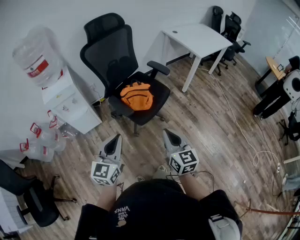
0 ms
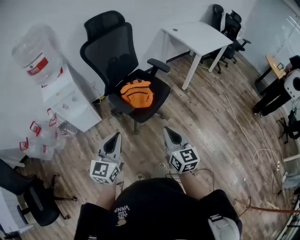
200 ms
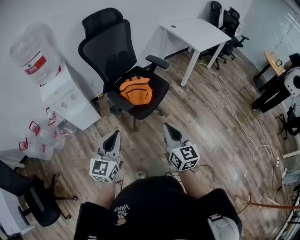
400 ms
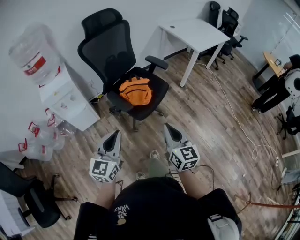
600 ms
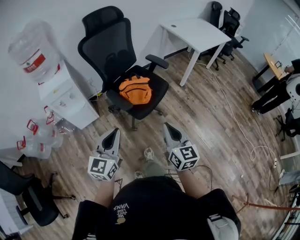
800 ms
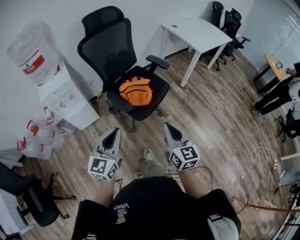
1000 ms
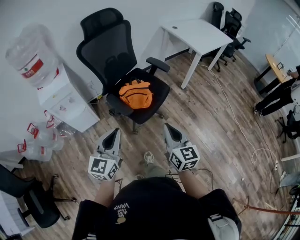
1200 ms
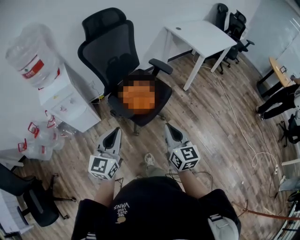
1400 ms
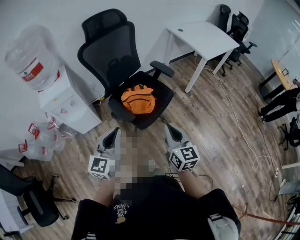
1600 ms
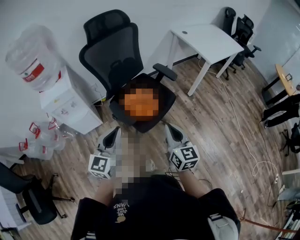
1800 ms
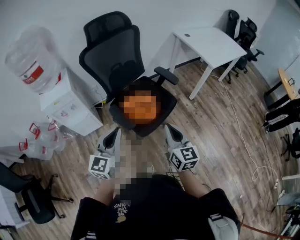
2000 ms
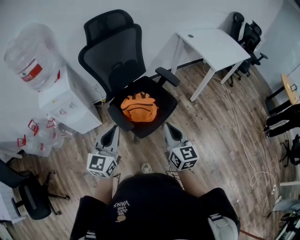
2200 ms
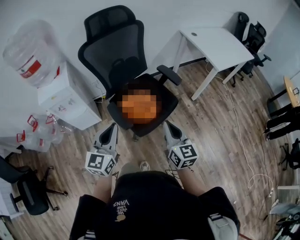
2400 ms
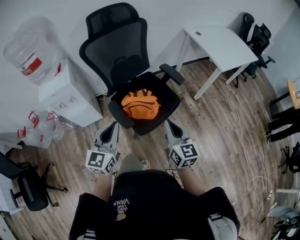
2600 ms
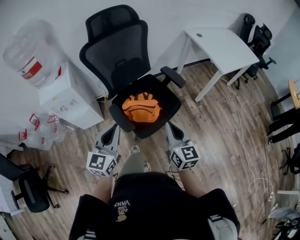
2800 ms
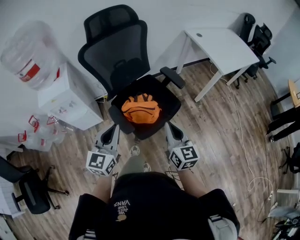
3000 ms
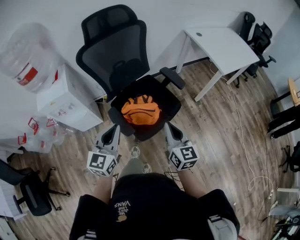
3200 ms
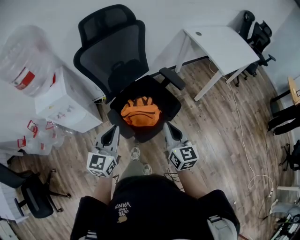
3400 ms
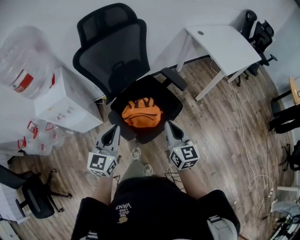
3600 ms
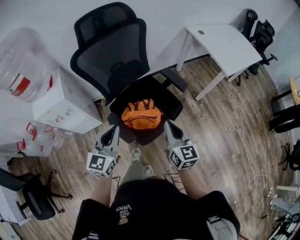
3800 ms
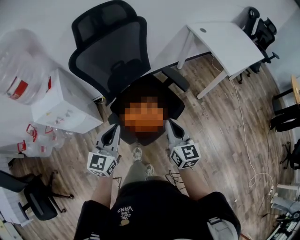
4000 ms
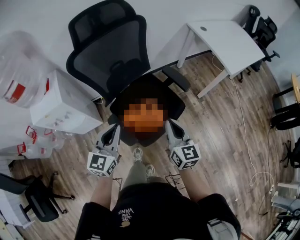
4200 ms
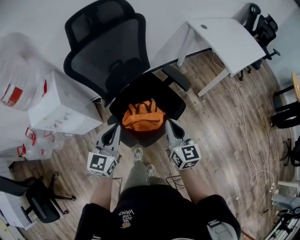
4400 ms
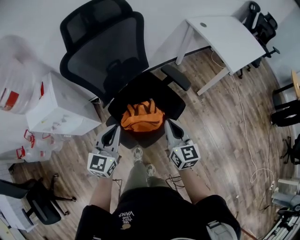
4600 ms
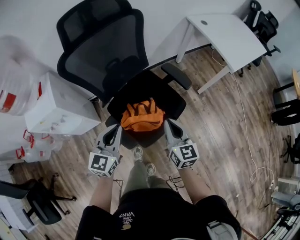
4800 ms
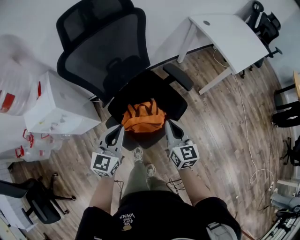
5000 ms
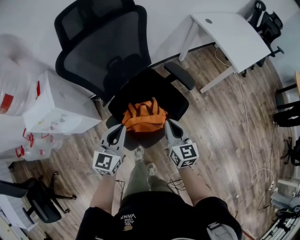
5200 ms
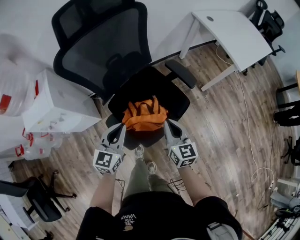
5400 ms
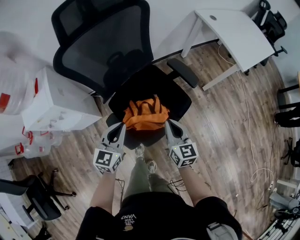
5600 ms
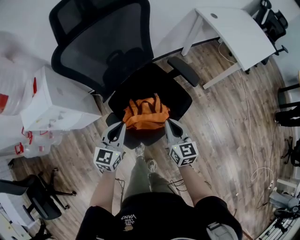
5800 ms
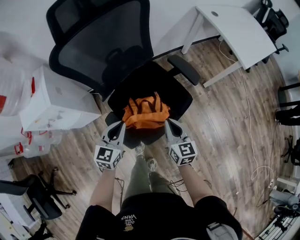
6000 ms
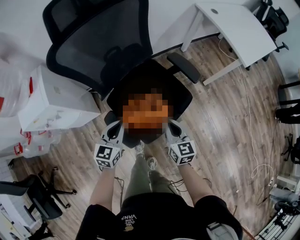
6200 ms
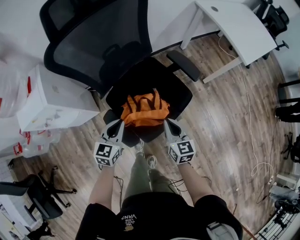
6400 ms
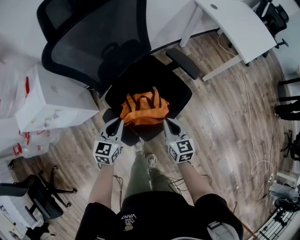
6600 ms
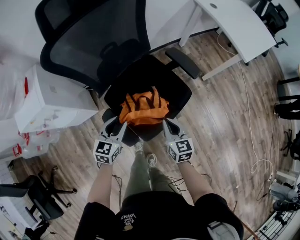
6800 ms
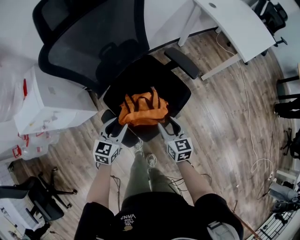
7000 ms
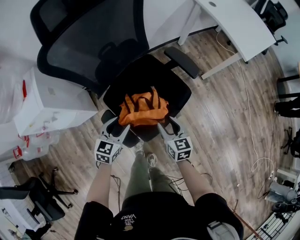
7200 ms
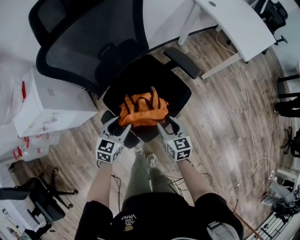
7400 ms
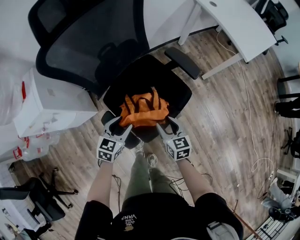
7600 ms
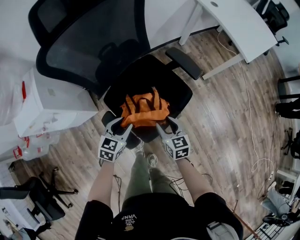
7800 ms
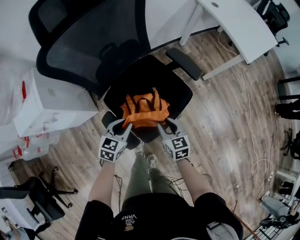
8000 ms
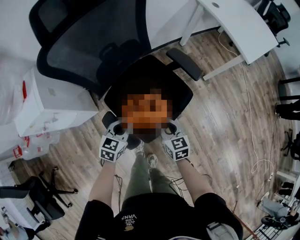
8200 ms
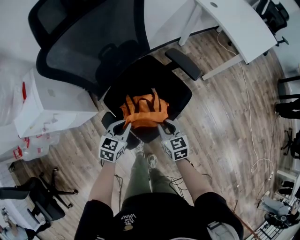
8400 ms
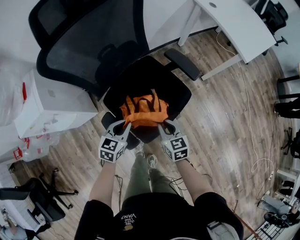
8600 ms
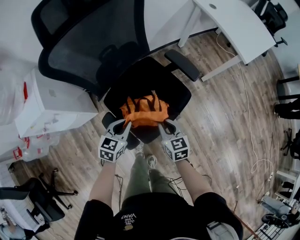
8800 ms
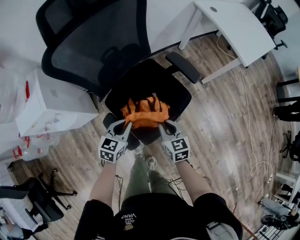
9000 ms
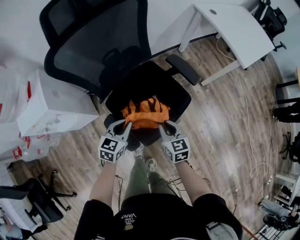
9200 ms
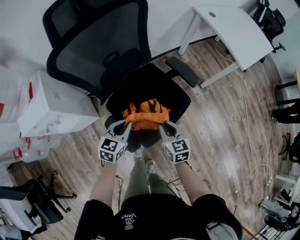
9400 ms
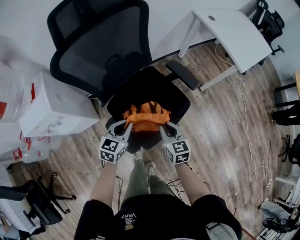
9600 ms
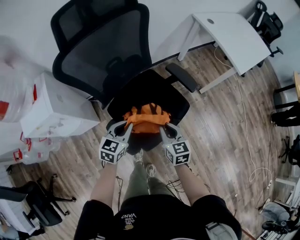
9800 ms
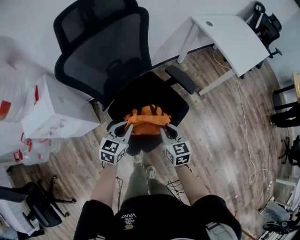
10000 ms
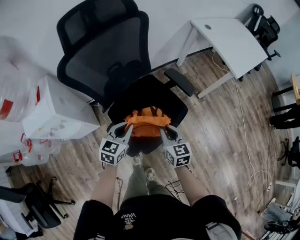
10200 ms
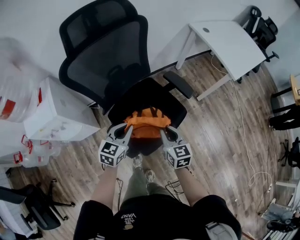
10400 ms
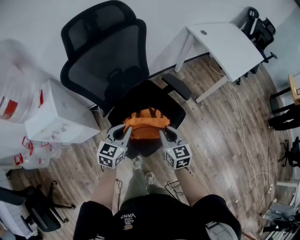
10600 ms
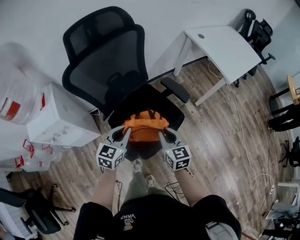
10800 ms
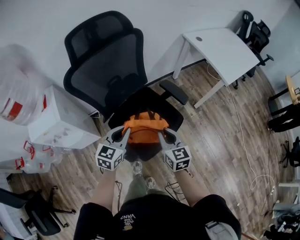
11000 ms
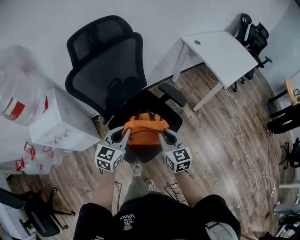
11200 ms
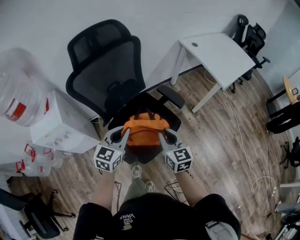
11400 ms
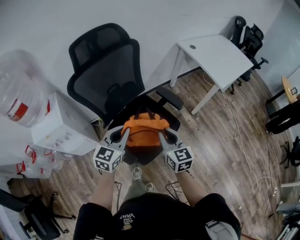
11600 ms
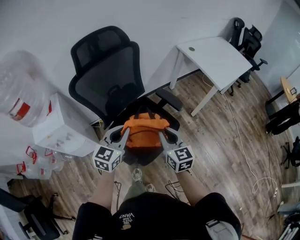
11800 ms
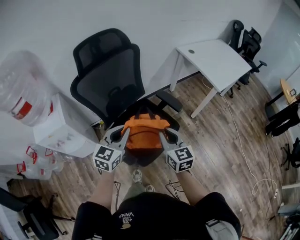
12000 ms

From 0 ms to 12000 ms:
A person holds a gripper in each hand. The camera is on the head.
From 0 ms to 1600 ms: Both grippers move forward, some 10 cm.
From 1600 ms to 3000 ms: The grippers both shift forward by roughly 15 cm.
From 3000 ms to 4400 ms: The grippers both shift forward by some 15 cm.
From 4400 ms to 6000 ms: The grippers both shift downward by roughly 15 cm.
From 6000 ms to 7600 ms: The two grippers go about 10 cm downward. The left gripper opens its fingers; the right gripper opens up.
From 7600 ms to 9000 ms: The right gripper closes its fingers; the left gripper closes its fingers.
From 9000 ms to 10400 ms: The grippers both shift upward by some 10 cm.
From 10400 ms to 12000 ms: Both grippers travel together upward, roughly 15 cm.

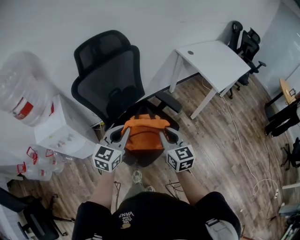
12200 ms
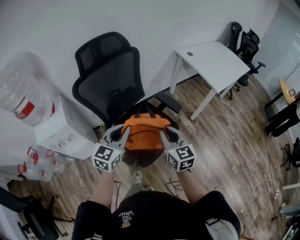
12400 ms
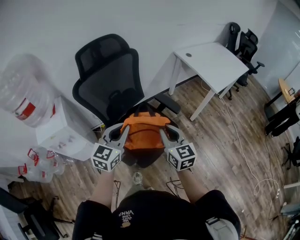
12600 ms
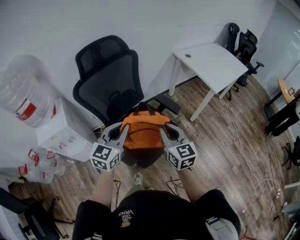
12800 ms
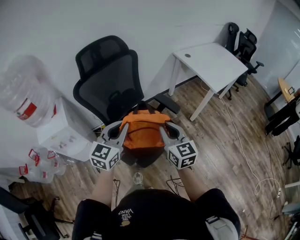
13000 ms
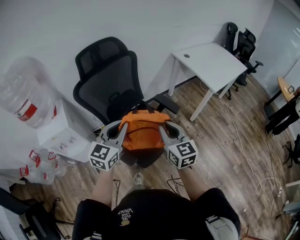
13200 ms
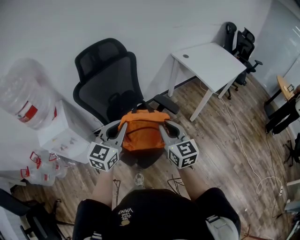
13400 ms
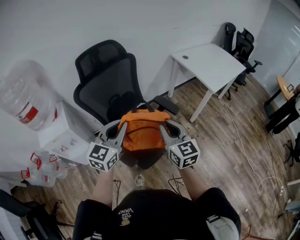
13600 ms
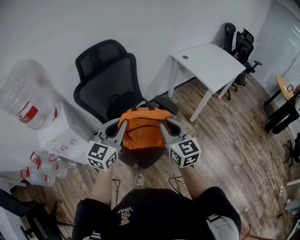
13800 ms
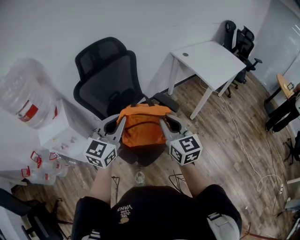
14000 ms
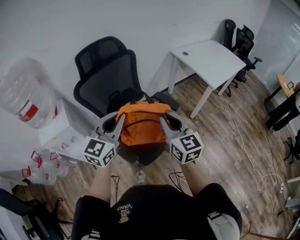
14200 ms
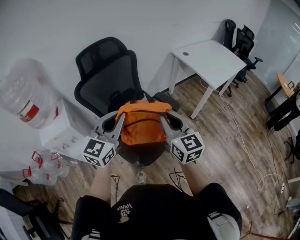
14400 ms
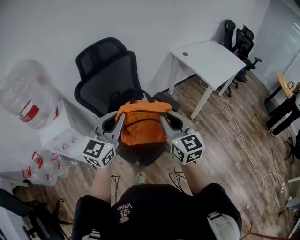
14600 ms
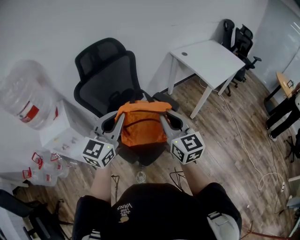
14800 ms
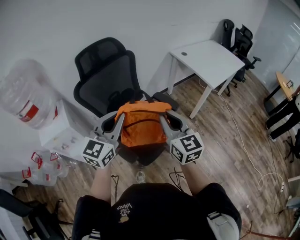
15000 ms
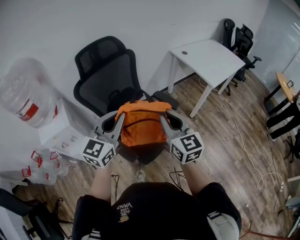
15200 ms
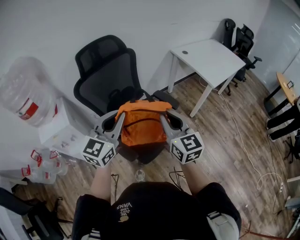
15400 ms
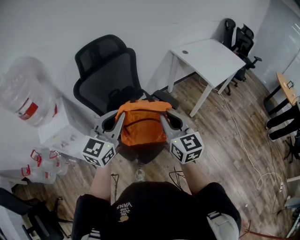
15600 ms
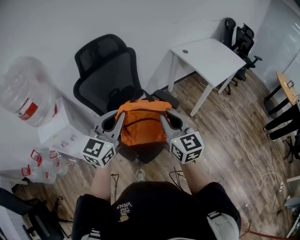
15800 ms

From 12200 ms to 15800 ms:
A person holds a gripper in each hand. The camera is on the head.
From 12200 ms to 14000 ms: The two grippers go roughly 10 cm upward.
From 14000 ms to 15800 ms: The grippers stay close to where they were, moving slightly.

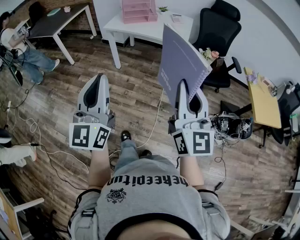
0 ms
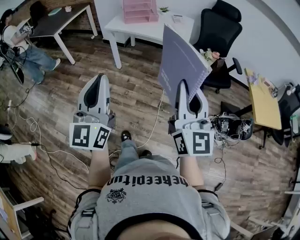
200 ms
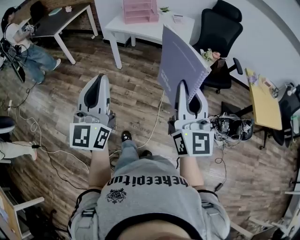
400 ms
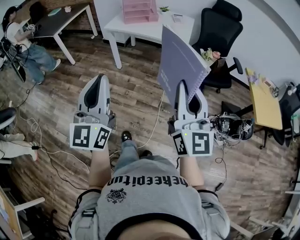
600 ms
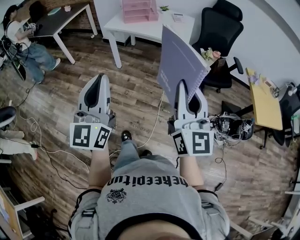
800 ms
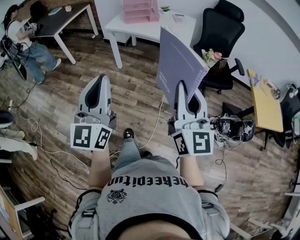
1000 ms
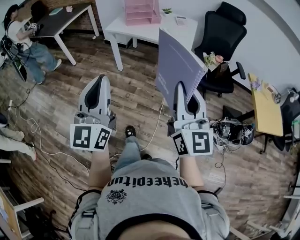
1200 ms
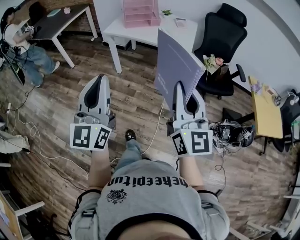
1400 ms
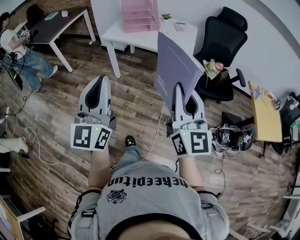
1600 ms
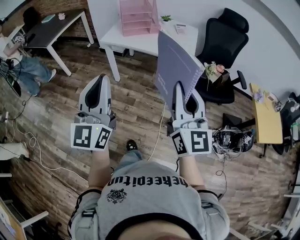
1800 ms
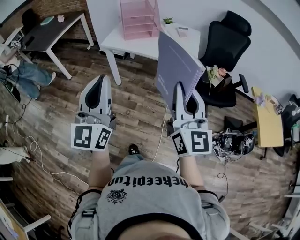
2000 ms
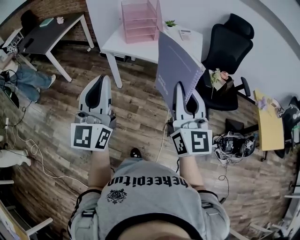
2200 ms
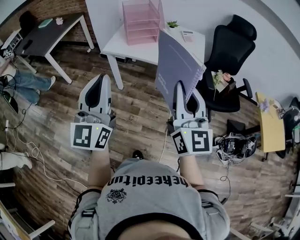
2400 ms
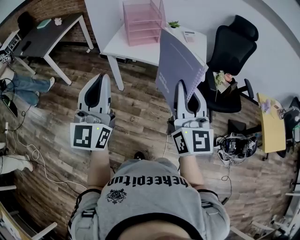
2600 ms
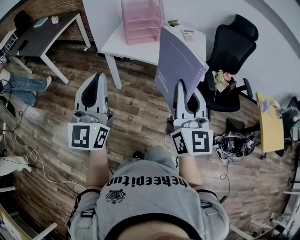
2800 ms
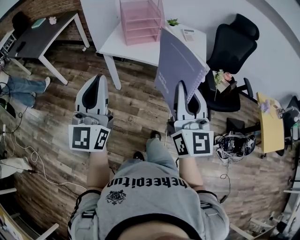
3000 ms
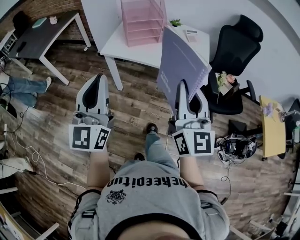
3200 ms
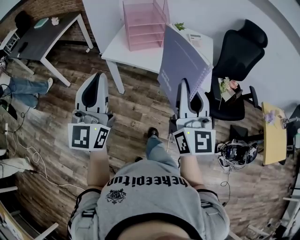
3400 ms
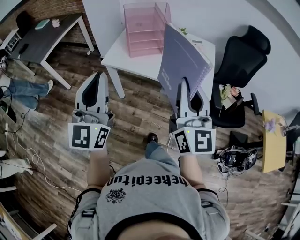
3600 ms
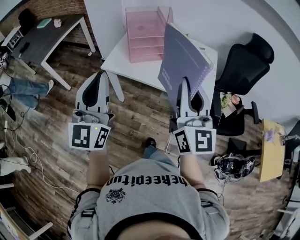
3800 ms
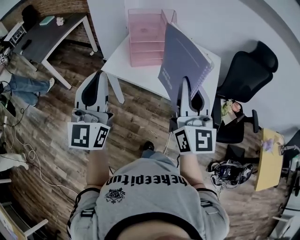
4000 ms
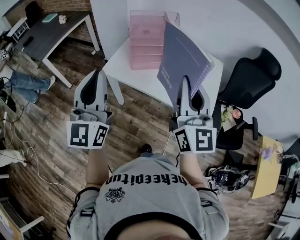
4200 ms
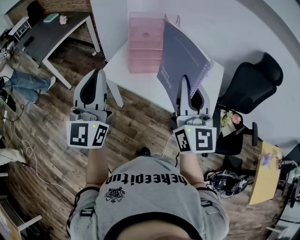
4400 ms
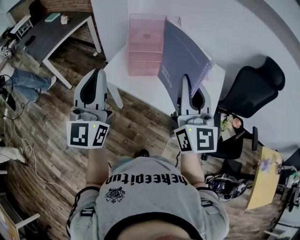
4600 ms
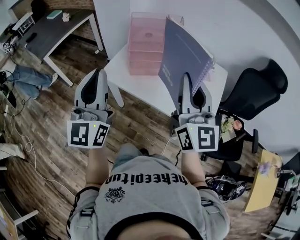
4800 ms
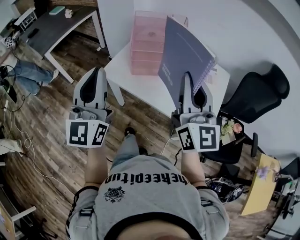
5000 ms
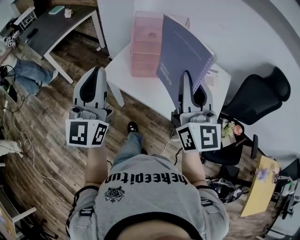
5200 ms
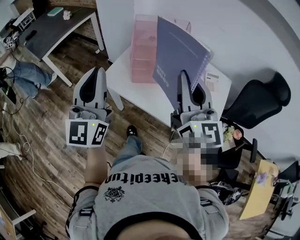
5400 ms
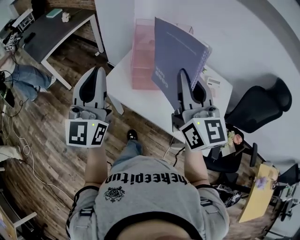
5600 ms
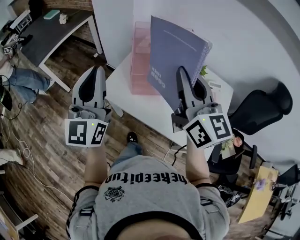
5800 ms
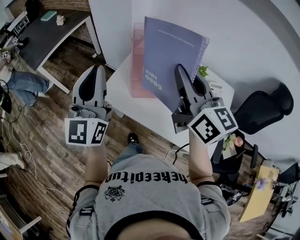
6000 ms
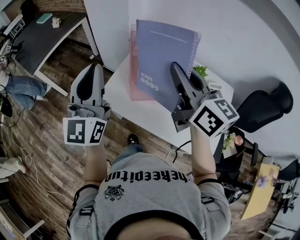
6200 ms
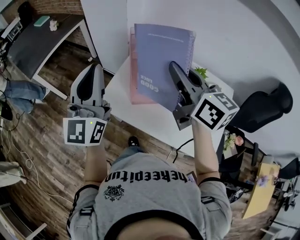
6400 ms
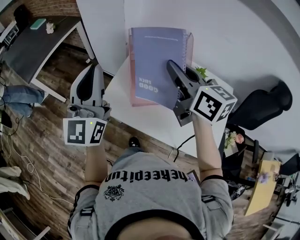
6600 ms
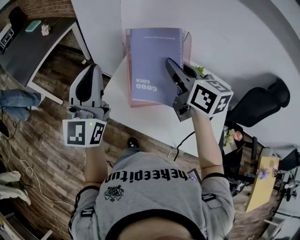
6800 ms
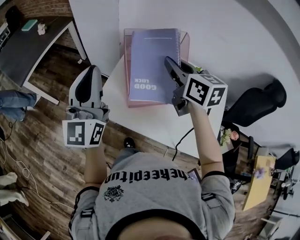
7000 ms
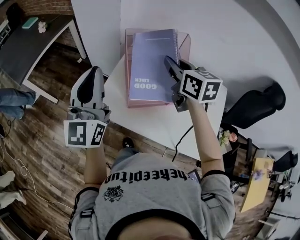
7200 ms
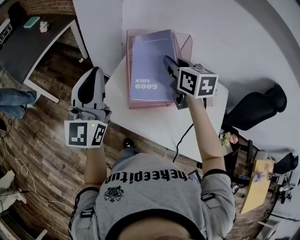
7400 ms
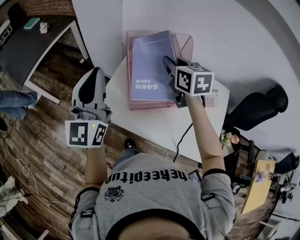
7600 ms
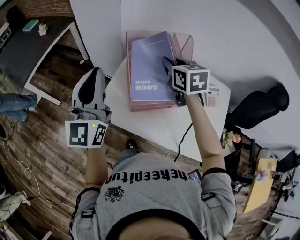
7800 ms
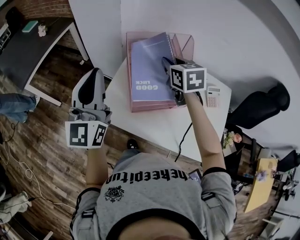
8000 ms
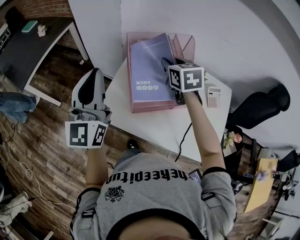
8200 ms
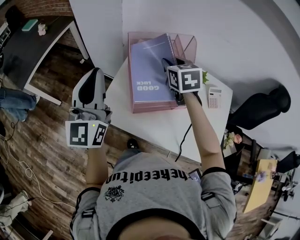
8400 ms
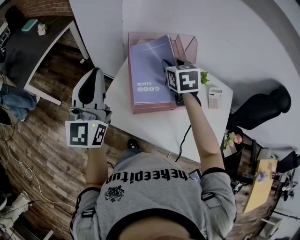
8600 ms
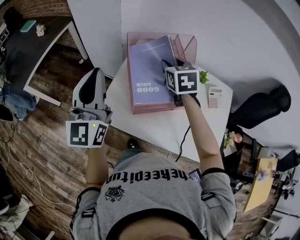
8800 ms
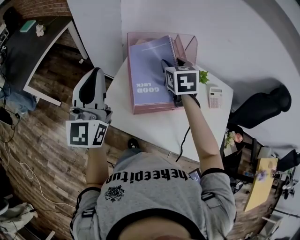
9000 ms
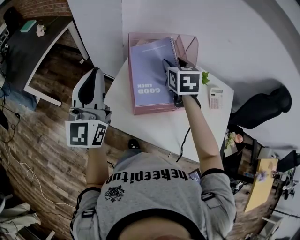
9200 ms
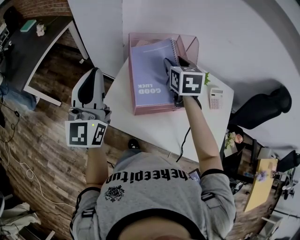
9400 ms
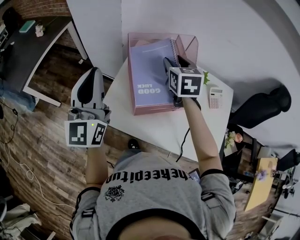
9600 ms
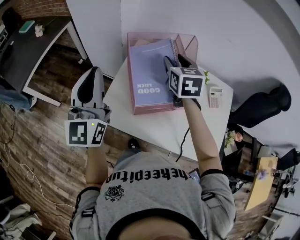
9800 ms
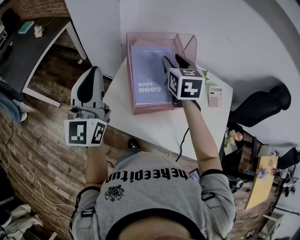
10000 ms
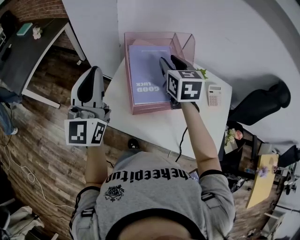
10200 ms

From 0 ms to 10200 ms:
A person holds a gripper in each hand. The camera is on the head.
From 0 ms to 1400 ms: The two grippers go some 10 cm forward.
From 1400 ms to 3000 ms: The two grippers go about 30 cm forward and to the left.
From 3000 ms to 4400 ms: Both grippers travel together forward, approximately 25 cm.
From 4400 ms to 5800 ms: Both grippers travel together forward, roughly 20 cm.
From 5800 ms to 7200 ms: The right gripper shifts about 20 cm forward and downward, and rotates roughly 30 degrees; the left gripper heads forward, covering some 10 cm.
From 7200 ms to 8800 ms: The right gripper goes approximately 10 cm downward and forward, changes its angle by approximately 20 degrees, and opens its fingers; the left gripper moves forward, some 5 cm.
From 8800 ms to 10200 ms: The grippers move only a little.
